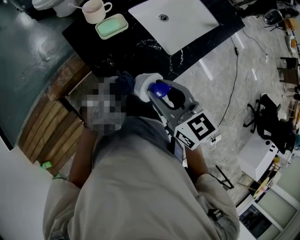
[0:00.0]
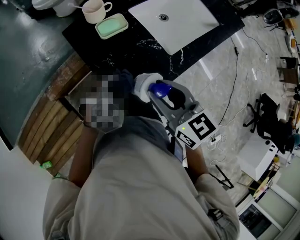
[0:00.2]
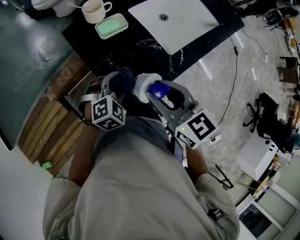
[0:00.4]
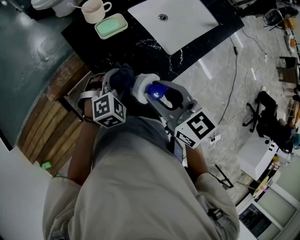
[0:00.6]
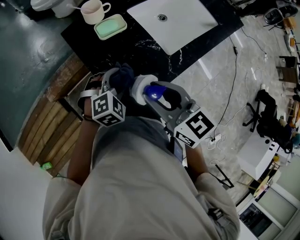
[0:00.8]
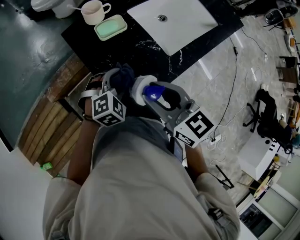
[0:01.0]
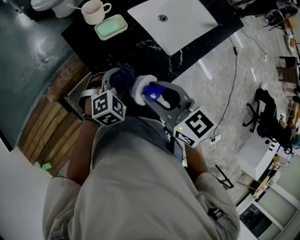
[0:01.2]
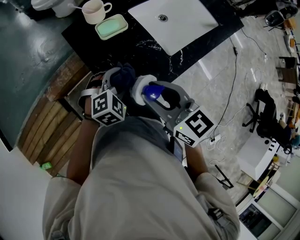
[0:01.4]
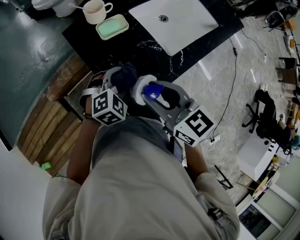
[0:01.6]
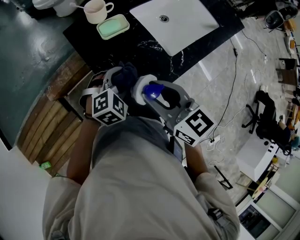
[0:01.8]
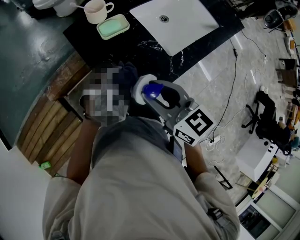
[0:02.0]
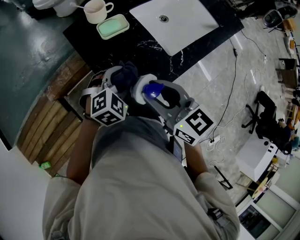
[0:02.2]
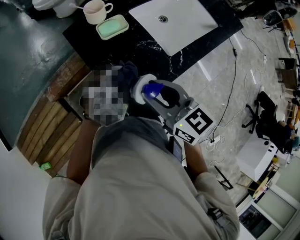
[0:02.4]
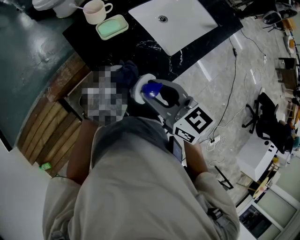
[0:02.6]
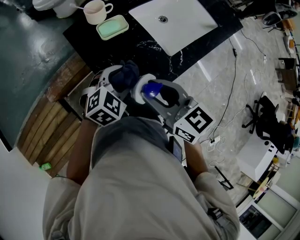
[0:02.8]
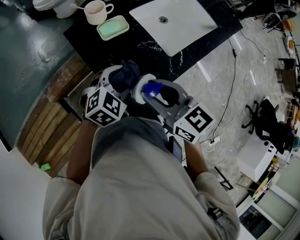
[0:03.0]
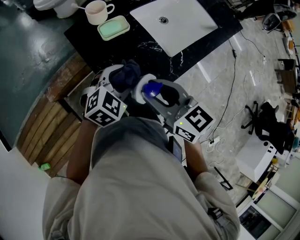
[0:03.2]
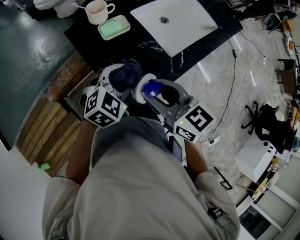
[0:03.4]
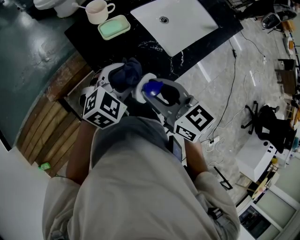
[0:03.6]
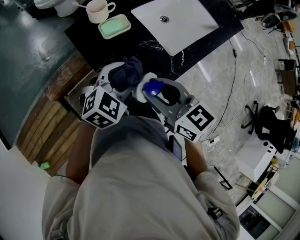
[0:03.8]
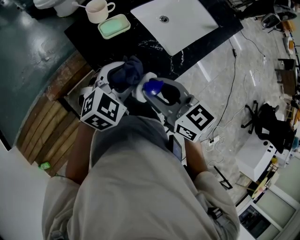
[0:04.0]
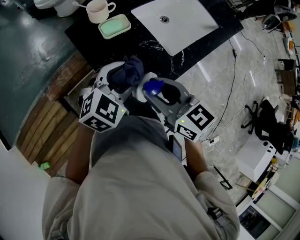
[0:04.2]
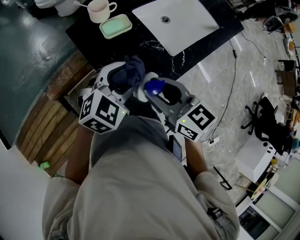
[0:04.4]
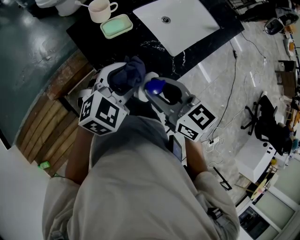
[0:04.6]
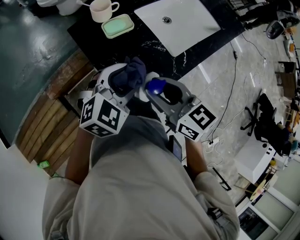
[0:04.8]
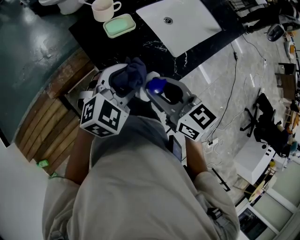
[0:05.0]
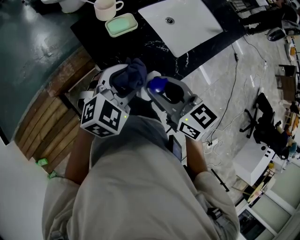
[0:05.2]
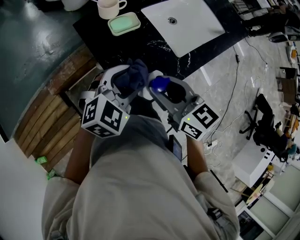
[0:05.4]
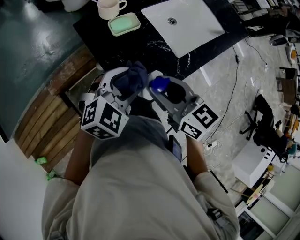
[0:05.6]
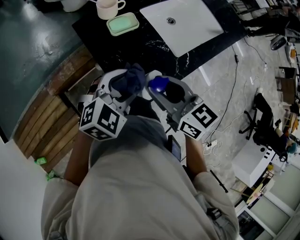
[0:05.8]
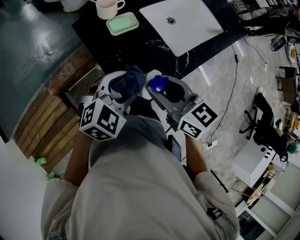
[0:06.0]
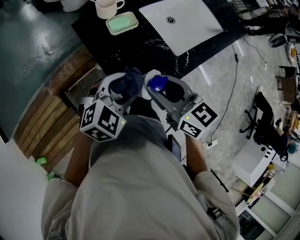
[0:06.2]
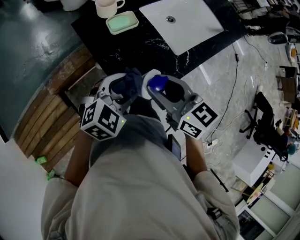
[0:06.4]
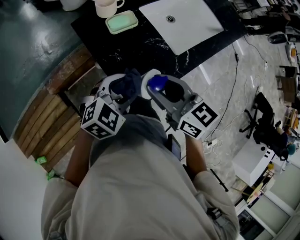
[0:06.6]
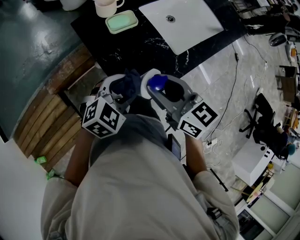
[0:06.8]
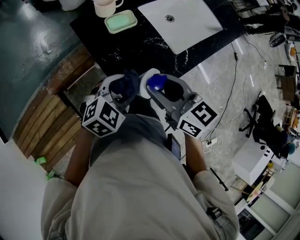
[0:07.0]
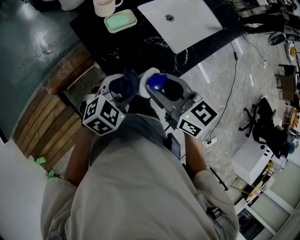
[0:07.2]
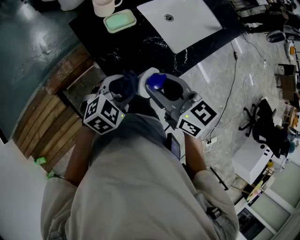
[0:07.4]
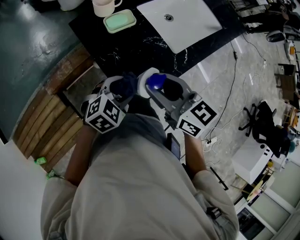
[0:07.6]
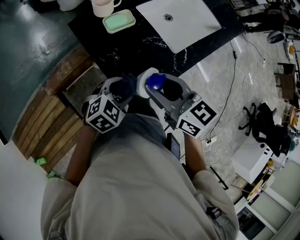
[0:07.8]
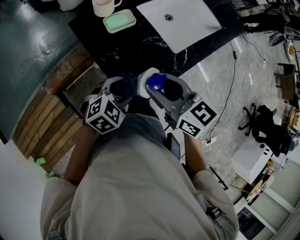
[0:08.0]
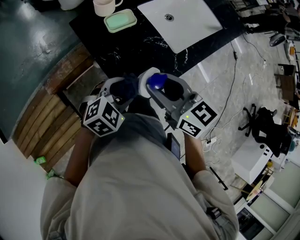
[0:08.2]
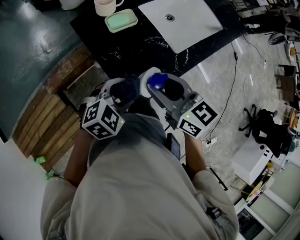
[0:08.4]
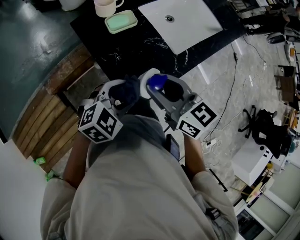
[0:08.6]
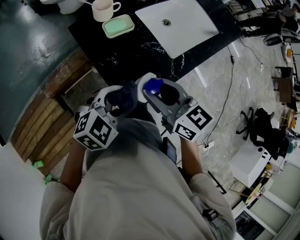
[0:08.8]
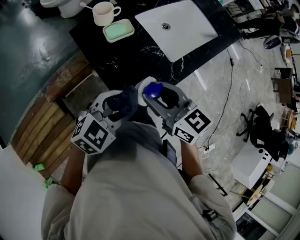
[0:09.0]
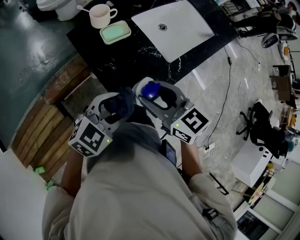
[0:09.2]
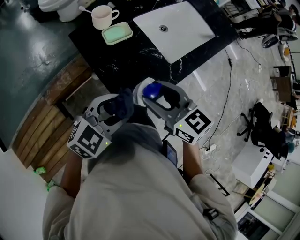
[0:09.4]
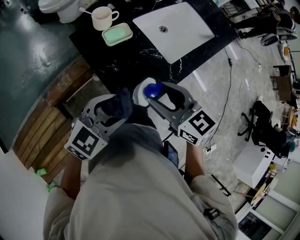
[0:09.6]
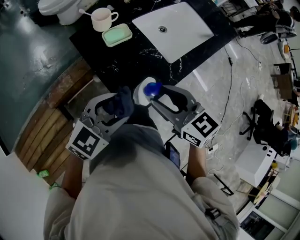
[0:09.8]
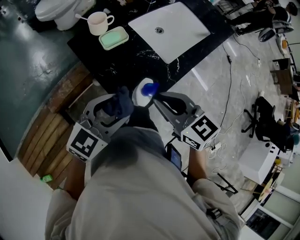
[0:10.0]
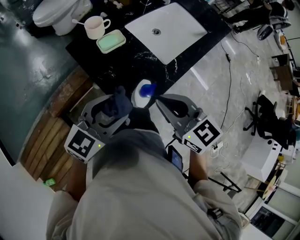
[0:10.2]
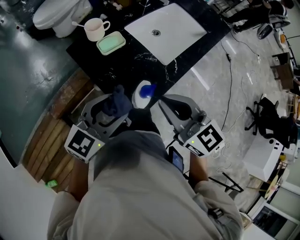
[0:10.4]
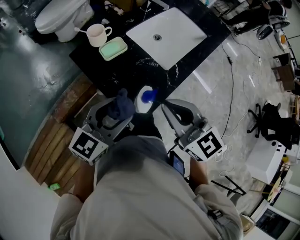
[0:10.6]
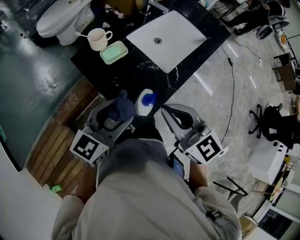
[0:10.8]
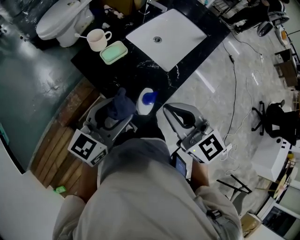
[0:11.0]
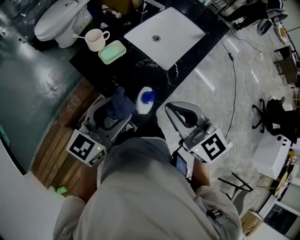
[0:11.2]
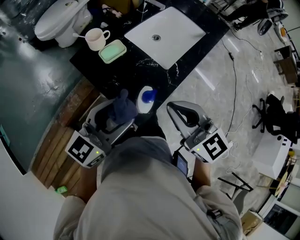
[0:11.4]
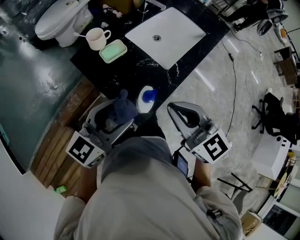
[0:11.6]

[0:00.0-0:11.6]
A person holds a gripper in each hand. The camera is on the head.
0:00.0 to 0:02.8: There are only small adjustments of the grippers.
0:02.8 to 0:04.4: The left gripper shifts some 5 cm upward.
0:04.4 to 0:05.8: The grippers make only small movements.
0:05.8 to 0:07.2: The left gripper goes roughly 5 cm downward.
0:07.2 to 0:08.8: The grippers stay close to where they were, moving slightly.
0:08.8 to 0:10.2: The left gripper moves upward, roughly 5 cm, and swivels about 20 degrees; the right gripper ends up about 5 cm from where it was, and closes its fingers.
0:10.2 to 0:11.6: The left gripper goes approximately 5 cm upward.

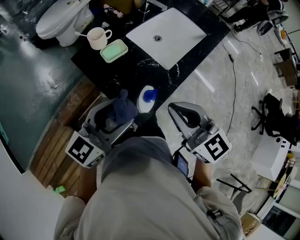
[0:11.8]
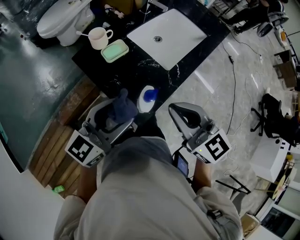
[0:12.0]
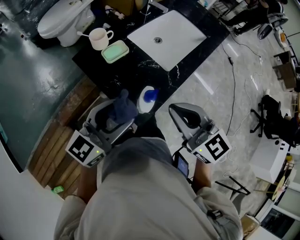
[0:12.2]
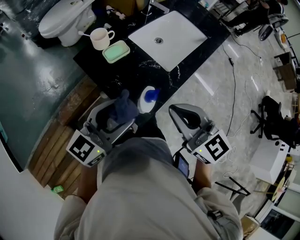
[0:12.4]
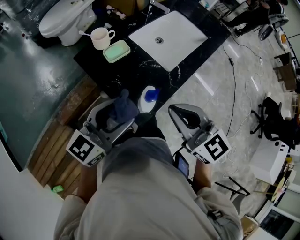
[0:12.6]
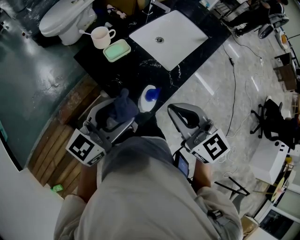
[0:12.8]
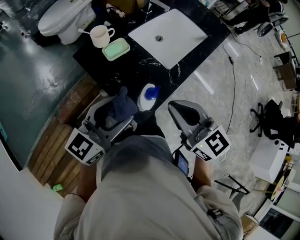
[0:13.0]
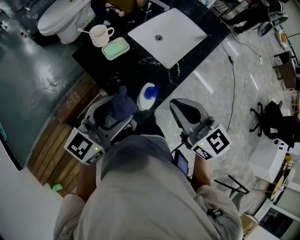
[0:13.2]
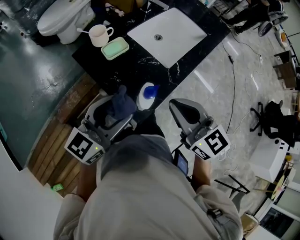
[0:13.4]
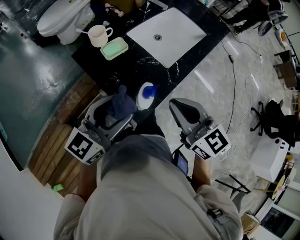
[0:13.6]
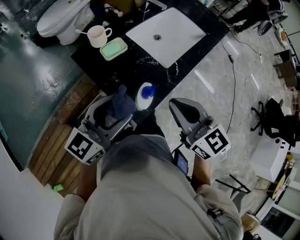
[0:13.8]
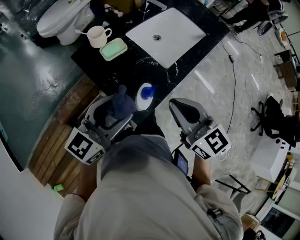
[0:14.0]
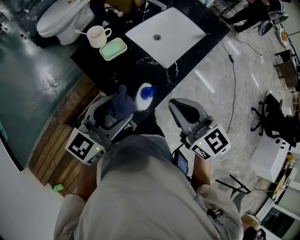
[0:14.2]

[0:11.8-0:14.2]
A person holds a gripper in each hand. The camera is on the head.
0:11.8 to 0:13.0: Both grippers stay about where they are.
0:13.0 to 0:14.2: There are only small adjustments of the grippers.

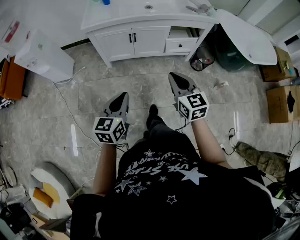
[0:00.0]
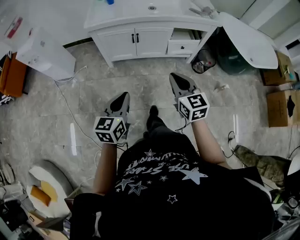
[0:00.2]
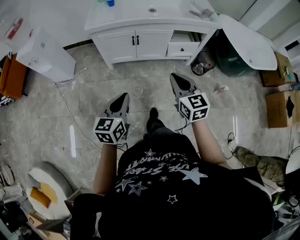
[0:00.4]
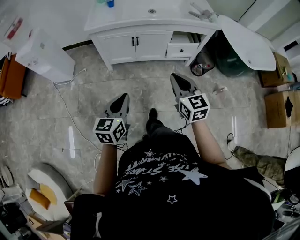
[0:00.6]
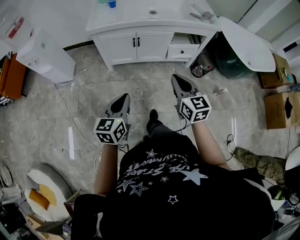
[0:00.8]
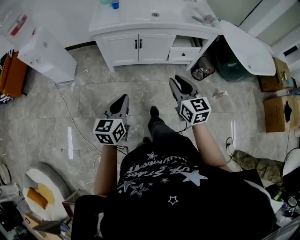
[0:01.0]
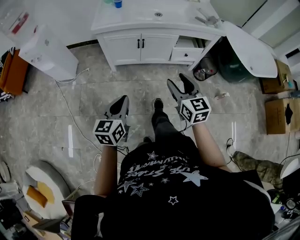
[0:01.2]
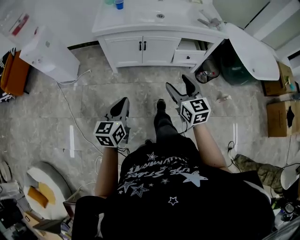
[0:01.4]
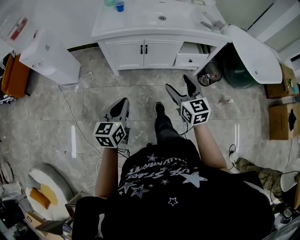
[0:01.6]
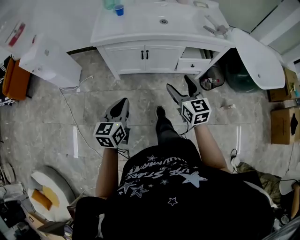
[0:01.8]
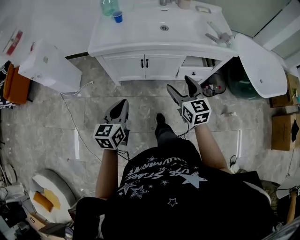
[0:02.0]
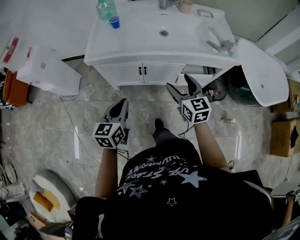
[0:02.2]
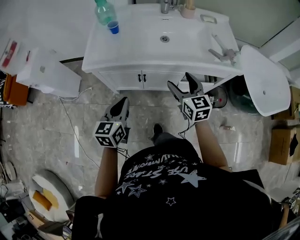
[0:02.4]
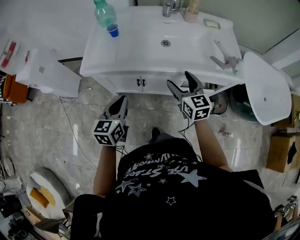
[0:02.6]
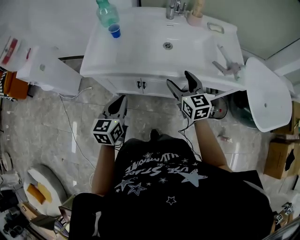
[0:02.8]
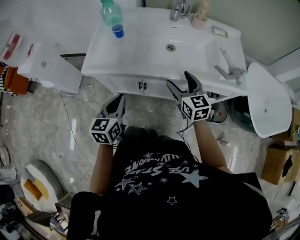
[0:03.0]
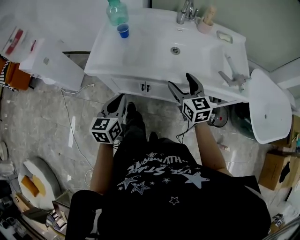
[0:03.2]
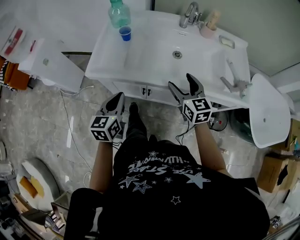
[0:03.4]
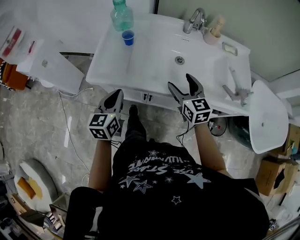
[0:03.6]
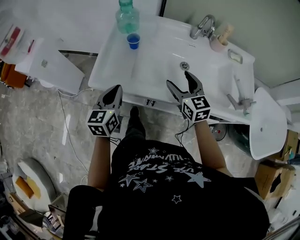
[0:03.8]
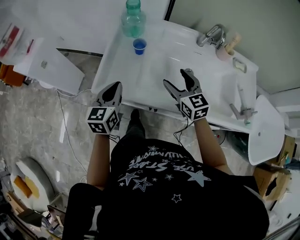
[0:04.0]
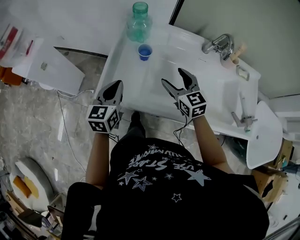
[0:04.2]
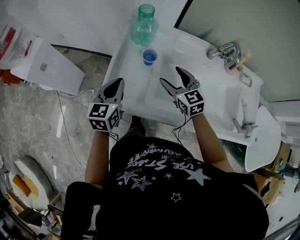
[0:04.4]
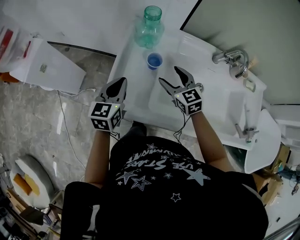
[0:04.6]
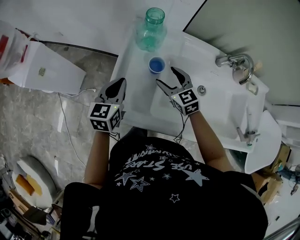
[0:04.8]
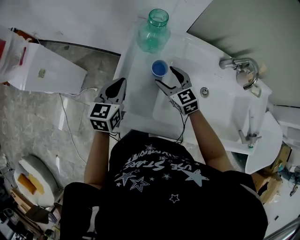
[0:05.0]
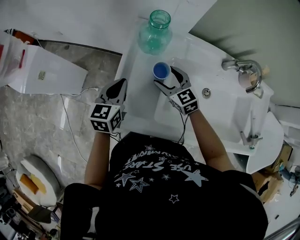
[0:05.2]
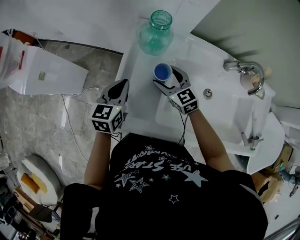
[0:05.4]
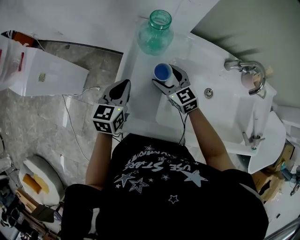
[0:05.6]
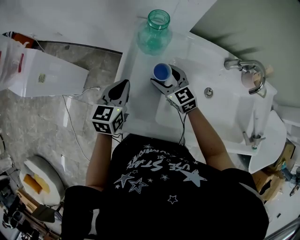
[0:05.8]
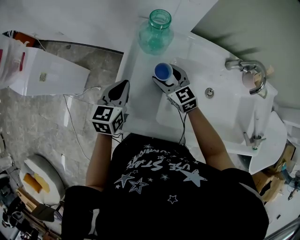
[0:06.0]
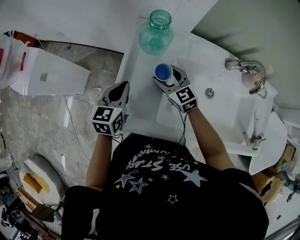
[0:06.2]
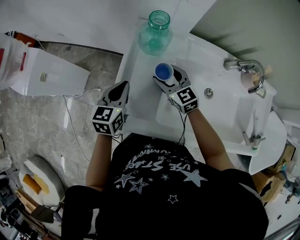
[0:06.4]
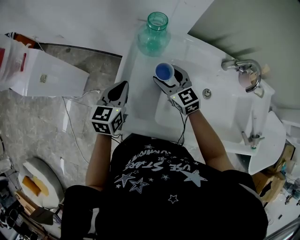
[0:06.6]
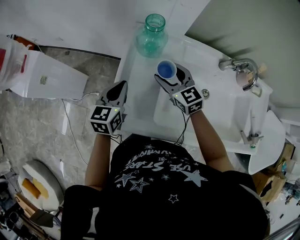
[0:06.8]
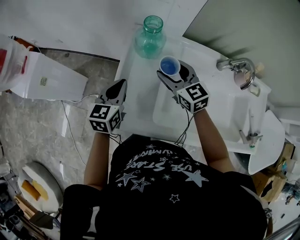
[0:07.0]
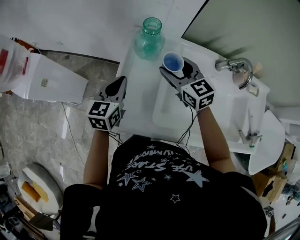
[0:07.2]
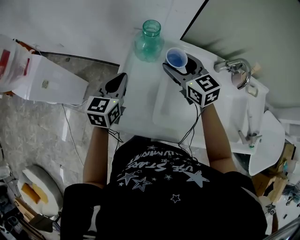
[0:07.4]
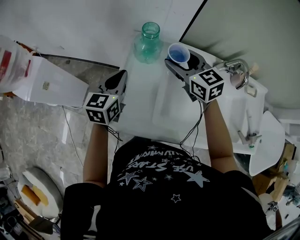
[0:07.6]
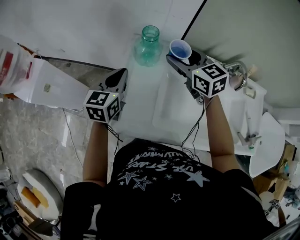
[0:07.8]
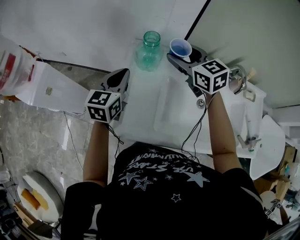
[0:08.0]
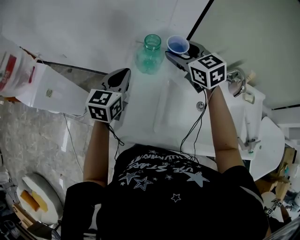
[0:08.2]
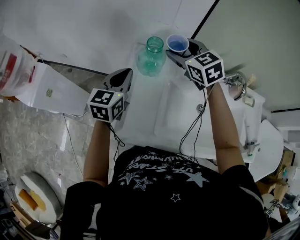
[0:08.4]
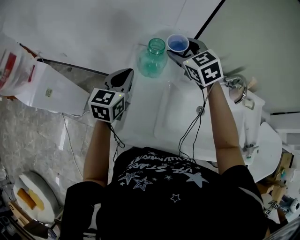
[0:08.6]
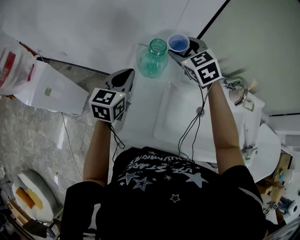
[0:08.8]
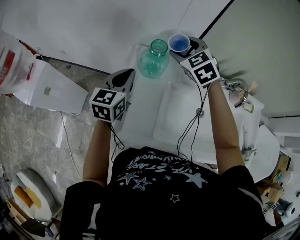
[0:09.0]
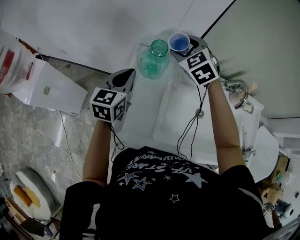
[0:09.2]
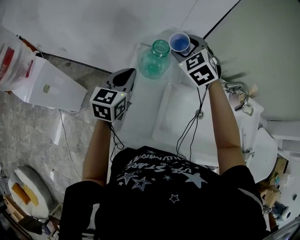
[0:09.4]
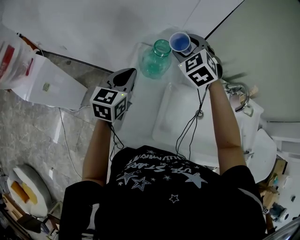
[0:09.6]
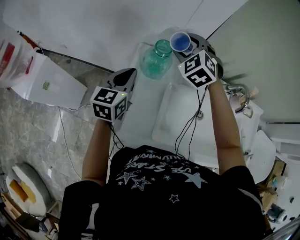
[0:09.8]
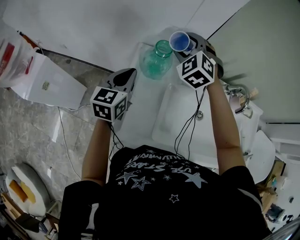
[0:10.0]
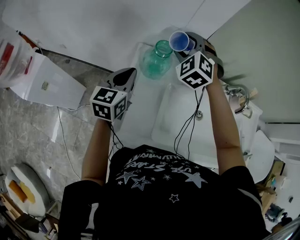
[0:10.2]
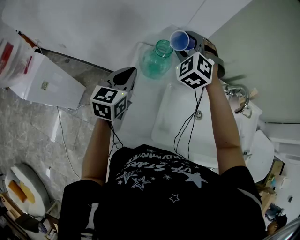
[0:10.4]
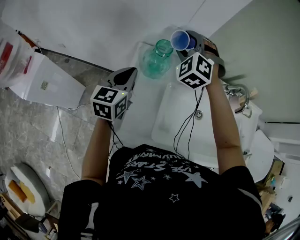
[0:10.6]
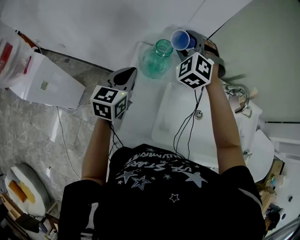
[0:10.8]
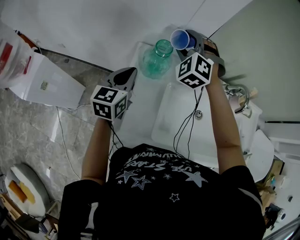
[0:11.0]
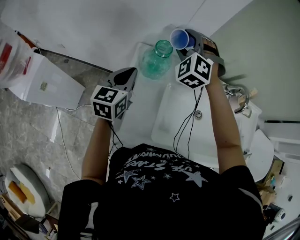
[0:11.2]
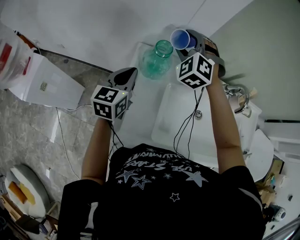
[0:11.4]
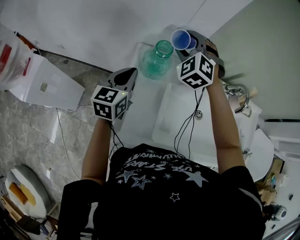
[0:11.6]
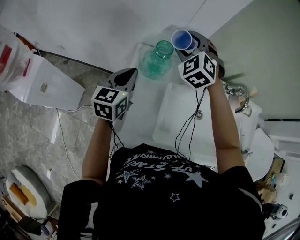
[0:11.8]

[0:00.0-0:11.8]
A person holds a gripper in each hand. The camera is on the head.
0:00.0 to 0:01.4: The left gripper shifts roughly 5 cm to the left, while the right gripper ends up approximately 5 cm from where it was, and opens up.
0:01.4 to 0:03.0: Both grippers travel together forward, about 40 cm.
0:03.0 to 0:04.4: The two grippers go some 35 cm forward and to the left.
0:04.4 to 0:06.0: The right gripper shifts roughly 15 cm forward, downward and to the left. Meanwhile the left gripper moves forward, approximately 10 cm.
0:06.0 to 0:07.4: The left gripper moves upward, about 5 cm, while the right gripper moves upward, roughly 15 cm.
0:07.4 to 0:08.8: The right gripper is displaced forward and upward by roughly 10 cm, and rotates about 30 degrees. The left gripper shifts some 5 cm forward.
0:08.8 to 0:10.4: The right gripper rotates some 40 degrees.
0:10.4 to 0:11.8: The grippers stay close to where they were, moving slightly.
